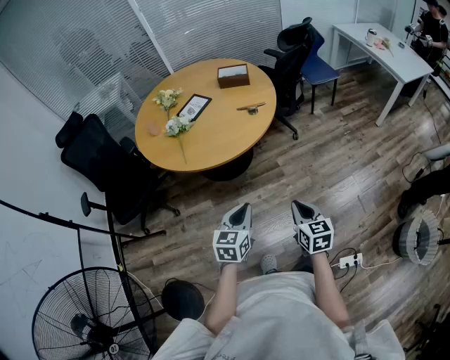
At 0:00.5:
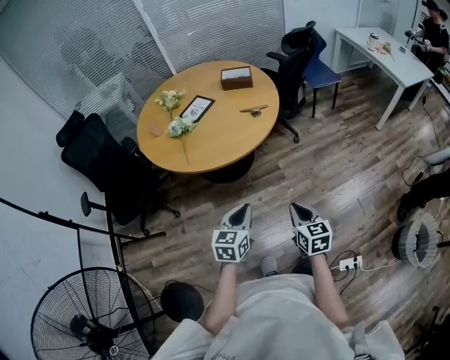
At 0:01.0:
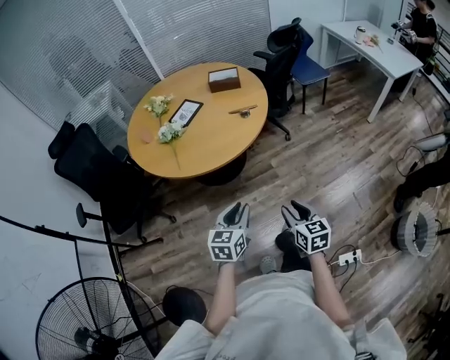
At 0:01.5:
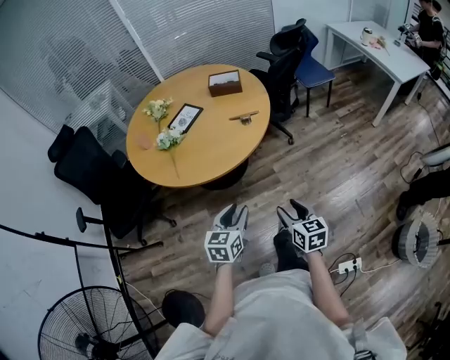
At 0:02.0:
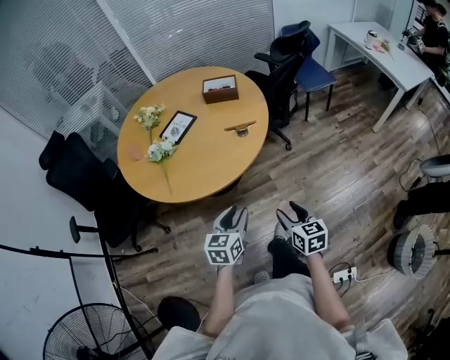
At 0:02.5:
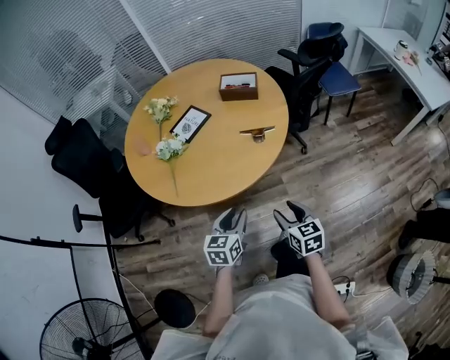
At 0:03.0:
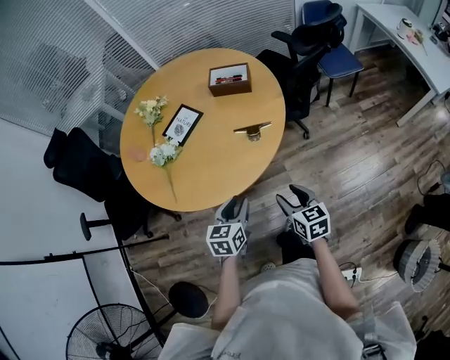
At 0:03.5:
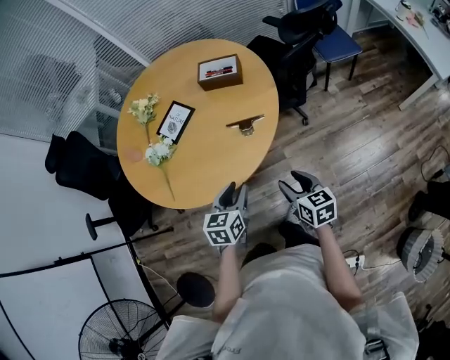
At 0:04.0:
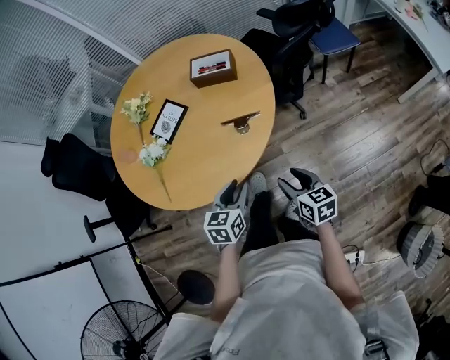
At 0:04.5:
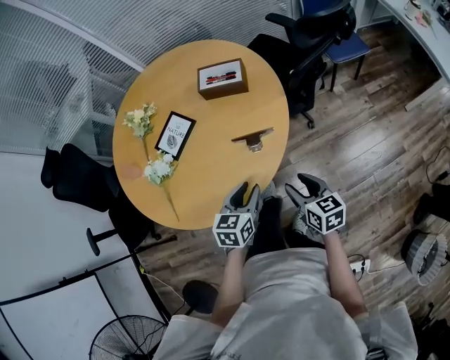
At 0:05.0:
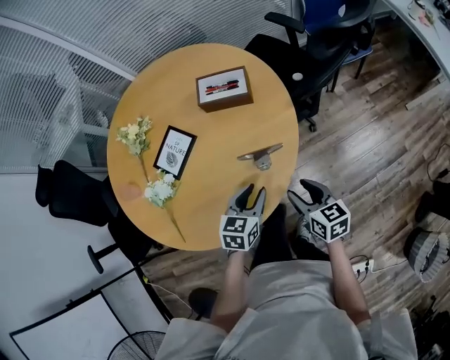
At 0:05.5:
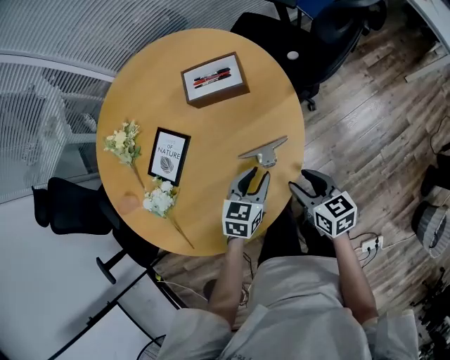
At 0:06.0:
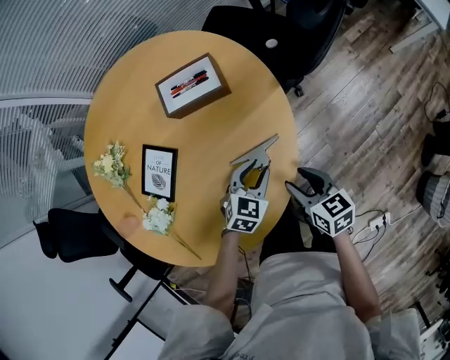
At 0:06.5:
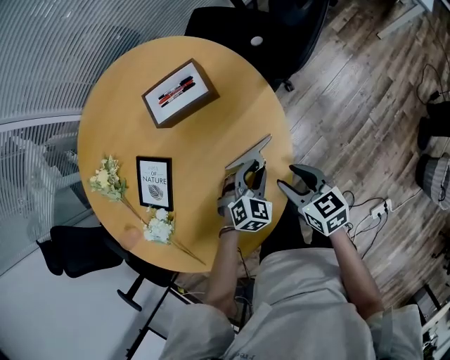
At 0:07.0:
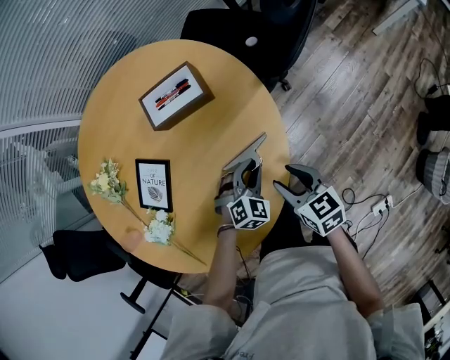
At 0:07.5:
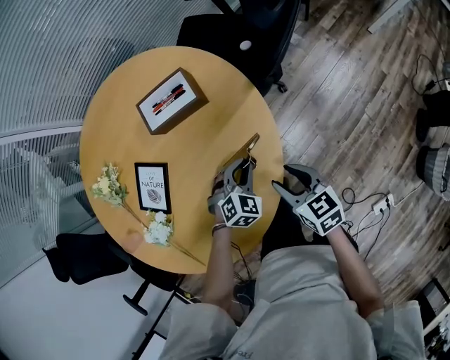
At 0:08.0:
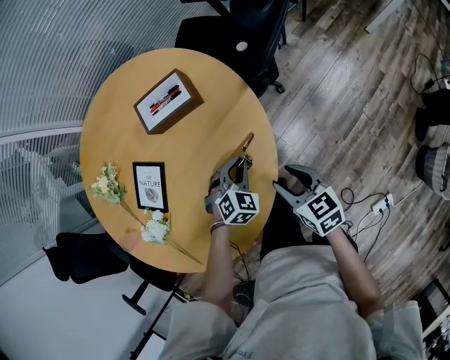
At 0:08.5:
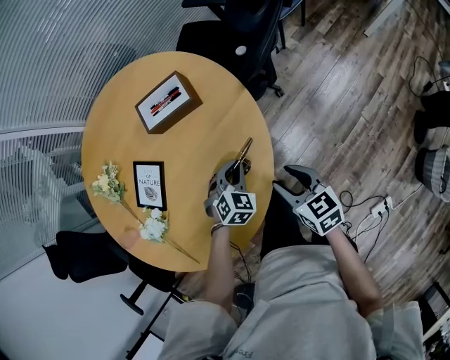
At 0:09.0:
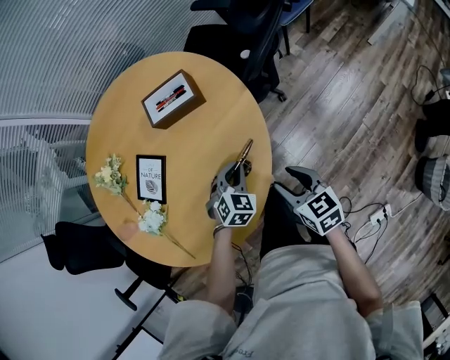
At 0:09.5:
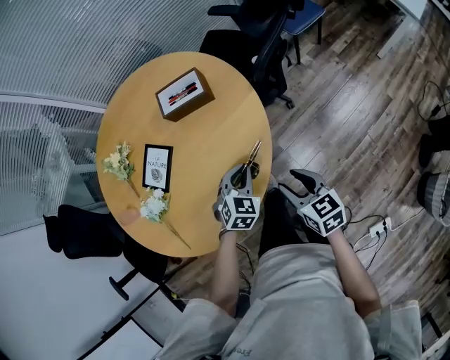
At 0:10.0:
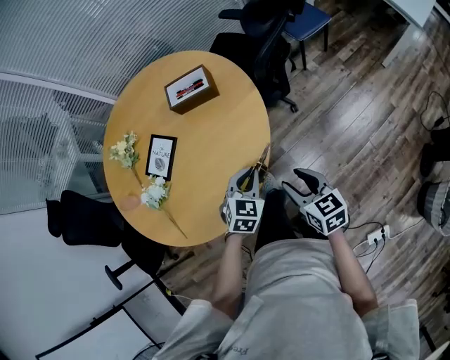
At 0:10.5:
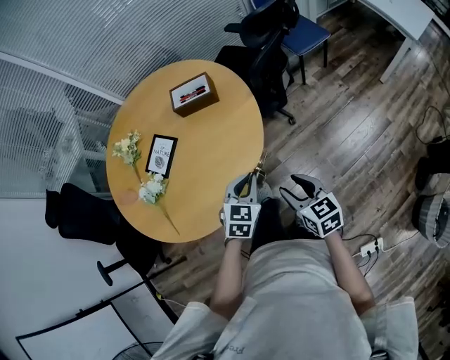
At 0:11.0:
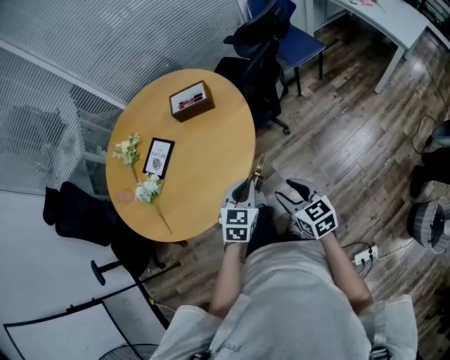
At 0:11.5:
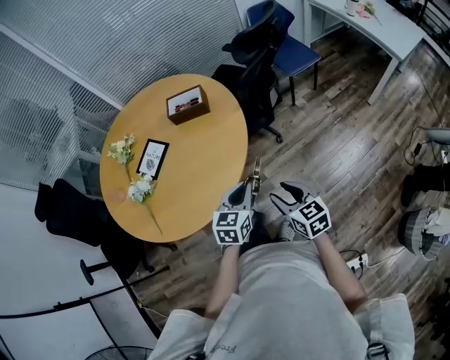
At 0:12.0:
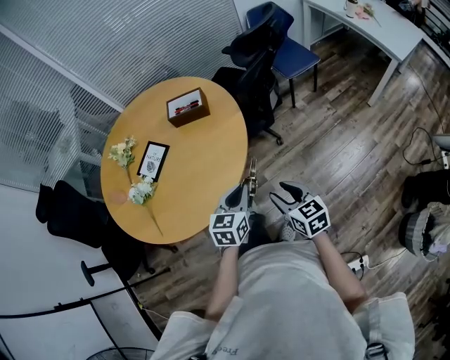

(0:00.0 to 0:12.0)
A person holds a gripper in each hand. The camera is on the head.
0:00.0 - 0:02.0: The grippers both shift forward by some 15 cm. The left gripper opens. The right gripper opens.
0:02.0 - 0:04.0: The grippers both shift forward by approximately 20 cm.
0:04.0 - 0:06.0: Both grippers move forward and downward, approximately 25 cm. The left gripper changes its angle by approximately 50 degrees.
0:06.0 - 0:08.0: The left gripper changes its angle by roughly 30 degrees, and closes its fingers.
0:08.0 - 0:10.0: Both grippers move backward and upward, about 15 cm. The left gripper changes its angle by approximately 30 degrees.
0:10.0 - 0:12.0: The left gripper is displaced backward and upward by approximately 10 cm, and rotates some 30 degrees. The right gripper goes about 10 cm backward and to the right.

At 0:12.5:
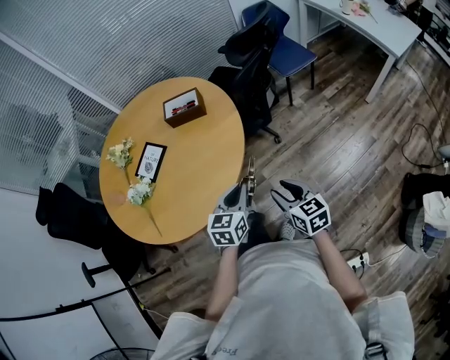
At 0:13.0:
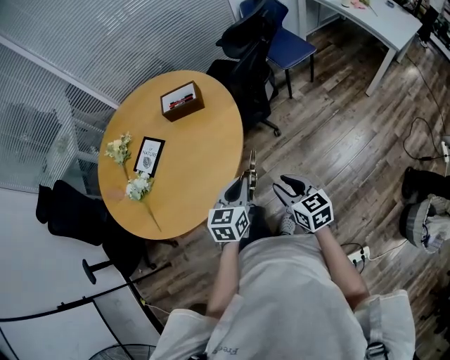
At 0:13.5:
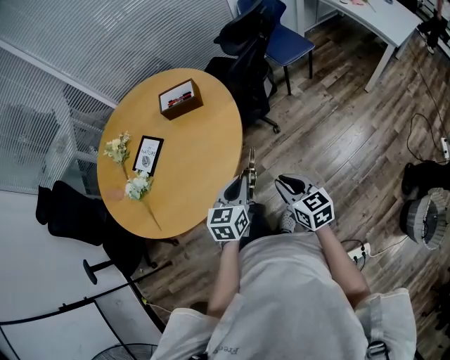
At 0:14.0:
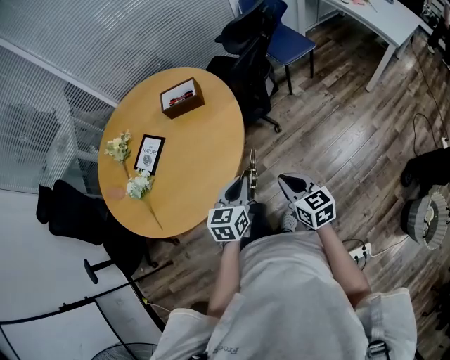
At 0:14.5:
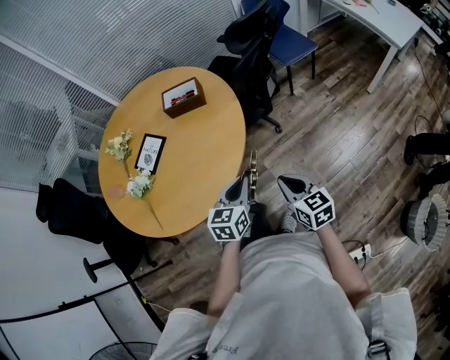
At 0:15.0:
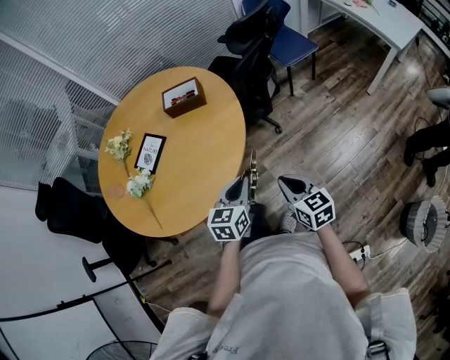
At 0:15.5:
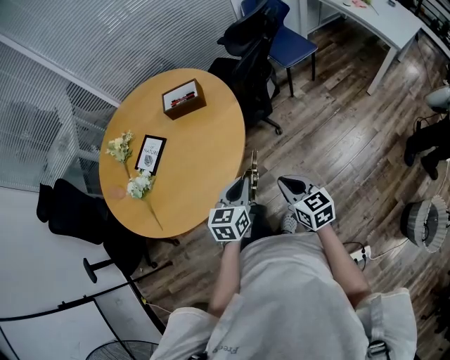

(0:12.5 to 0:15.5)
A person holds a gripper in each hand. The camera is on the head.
0:12.5 - 0:14.0: The right gripper closes its fingers.
0:14.0 - 0:15.5: The two grippers keep their place.

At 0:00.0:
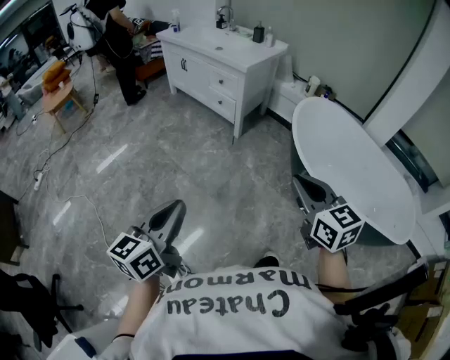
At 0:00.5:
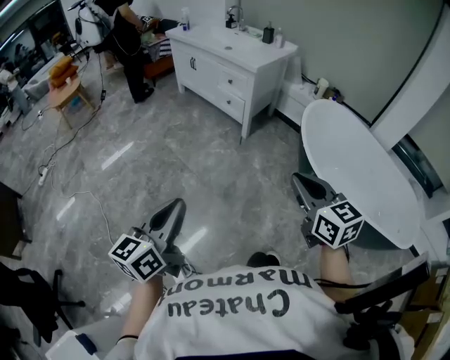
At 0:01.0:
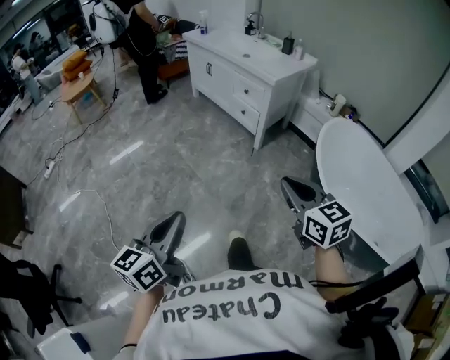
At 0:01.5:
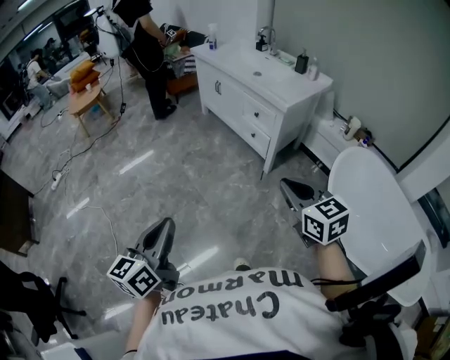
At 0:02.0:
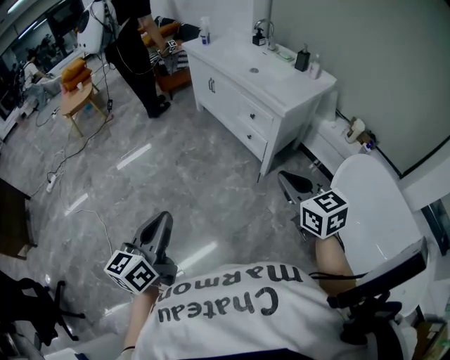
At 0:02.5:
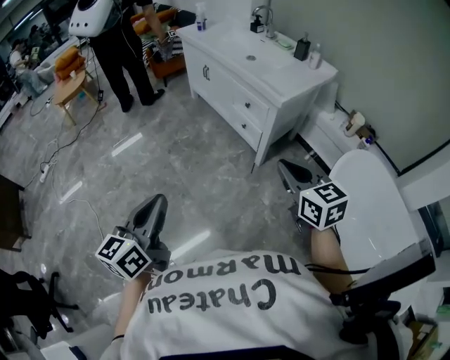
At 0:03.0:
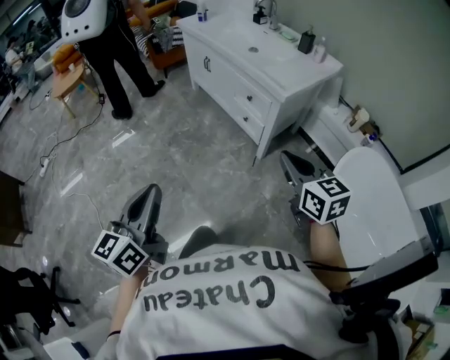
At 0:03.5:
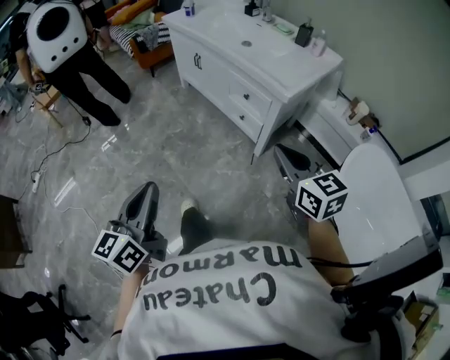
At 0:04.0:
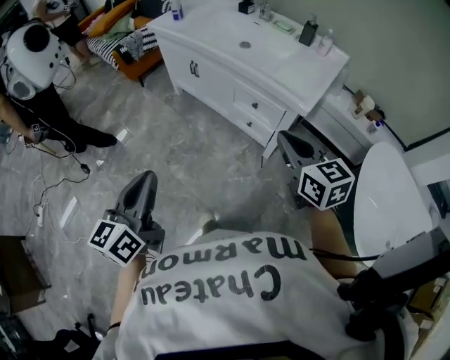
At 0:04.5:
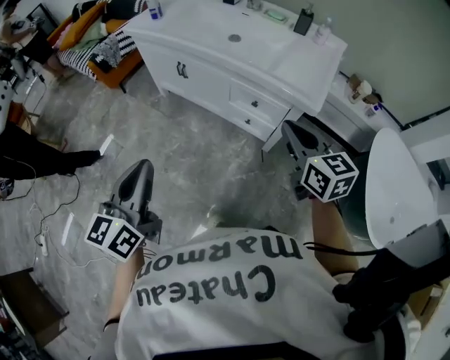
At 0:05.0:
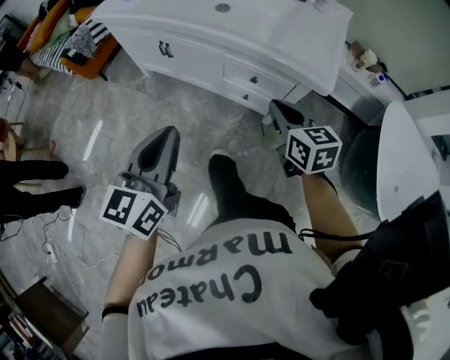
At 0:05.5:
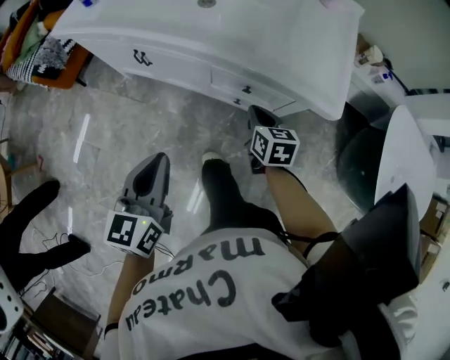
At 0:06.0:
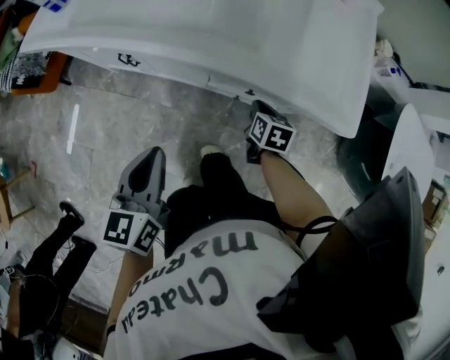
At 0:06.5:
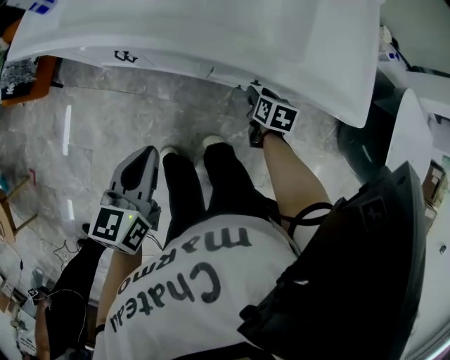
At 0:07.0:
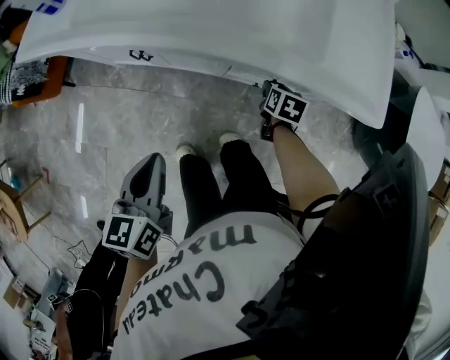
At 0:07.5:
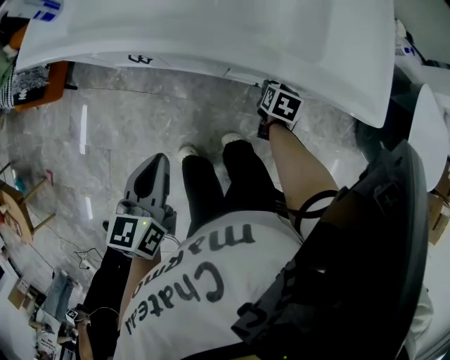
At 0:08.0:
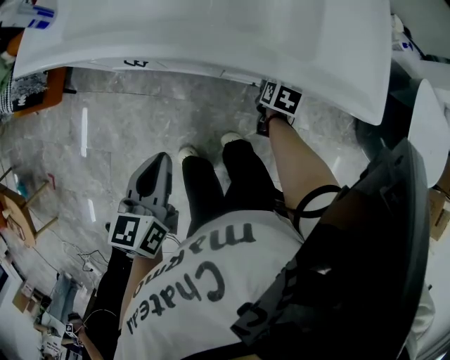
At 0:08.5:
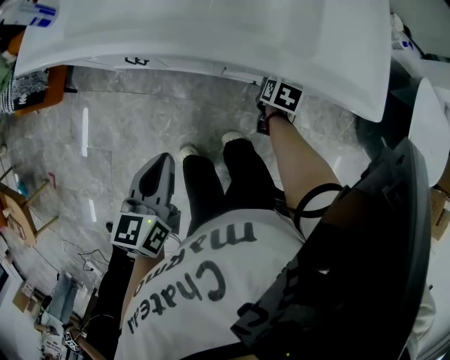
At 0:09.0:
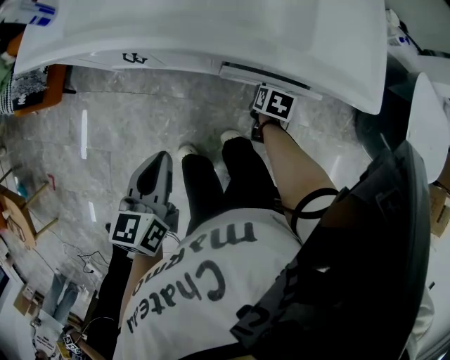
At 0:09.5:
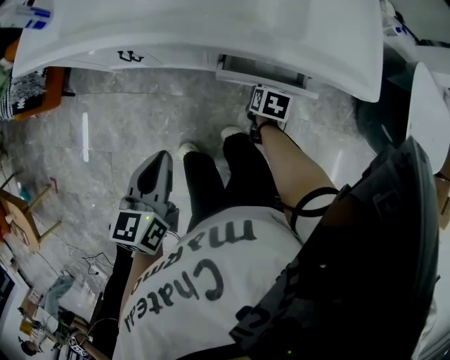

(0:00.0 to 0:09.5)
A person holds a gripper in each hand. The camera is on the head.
0:00.0 - 0:02.0: Both grippers move forward, some 35 cm.
0:02.0 - 0:04.0: Both grippers travel together forward, some 30 cm.
0:04.0 - 0:05.5: The grippers both shift forward and downward by approximately 35 cm. The left gripper rotates some 20 degrees; the right gripper rotates roughly 40 degrees.
0:05.5 - 0:07.5: The left gripper travels to the left, forward and downward by about 15 cm. The right gripper is displaced downward and forward by roughly 15 cm, swivels roughly 30 degrees, and opens up.
0:07.5 - 0:09.5: The right gripper goes approximately 5 cm backward.

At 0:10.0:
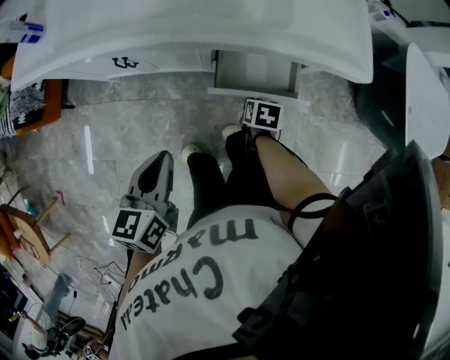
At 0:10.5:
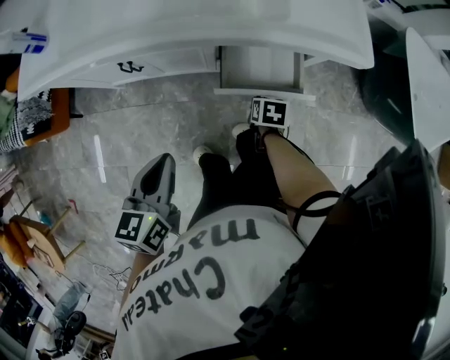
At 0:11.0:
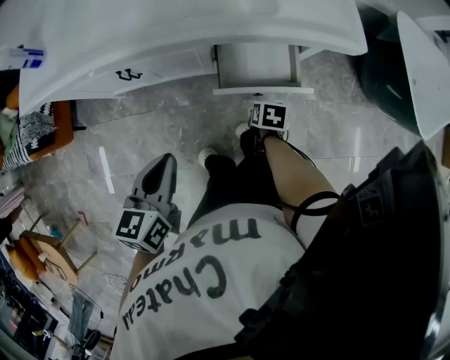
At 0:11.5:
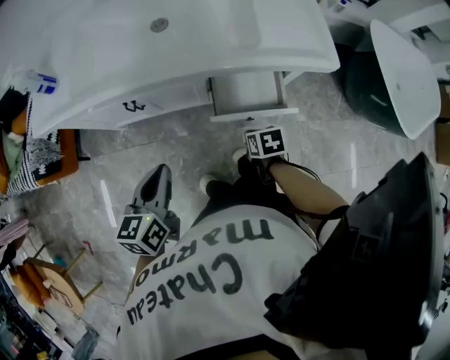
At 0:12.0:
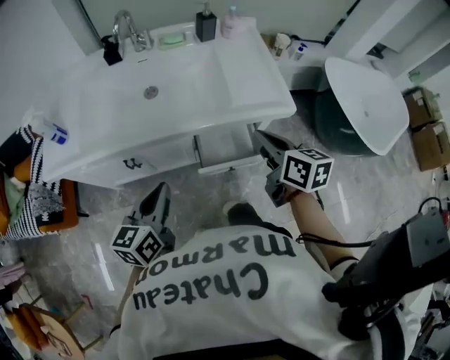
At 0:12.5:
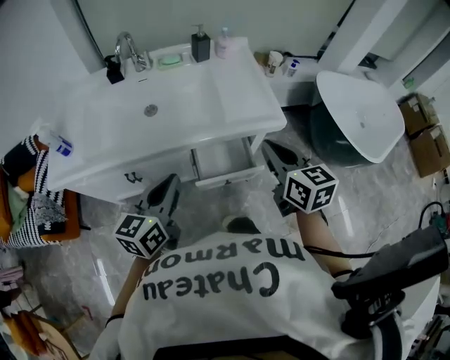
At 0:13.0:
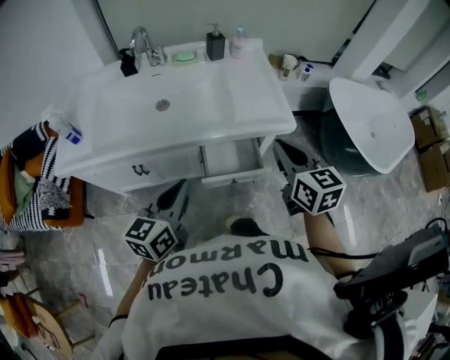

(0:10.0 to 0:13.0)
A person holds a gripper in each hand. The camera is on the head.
0:10.0 - 0:11.5: The left gripper changes place by roughly 5 cm; the right gripper moves upward and backward, about 10 cm, and closes.
0:11.5 - 0:13.0: The right gripper shifts about 35 cm upward, and angles its fingers upward, by roughly 50 degrees. The left gripper goes some 15 cm upward and to the right, and swivels approximately 20 degrees.
